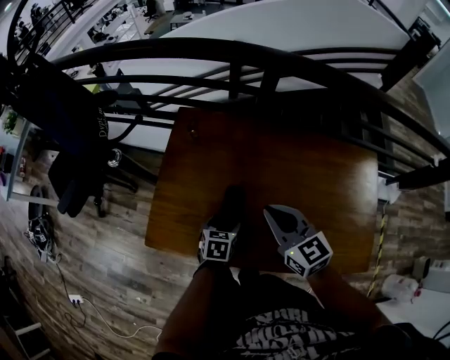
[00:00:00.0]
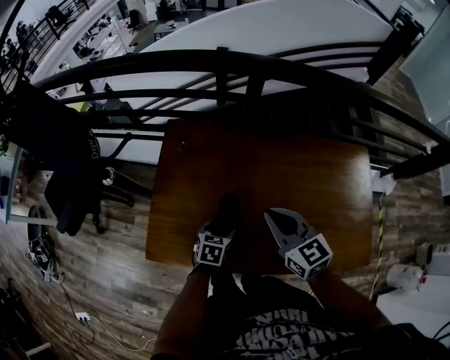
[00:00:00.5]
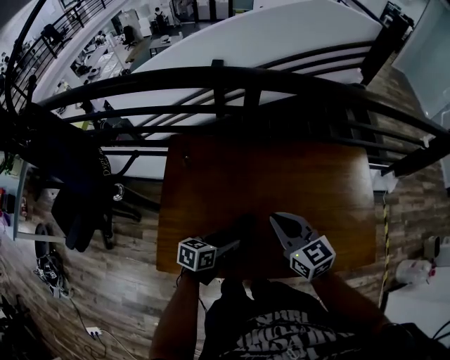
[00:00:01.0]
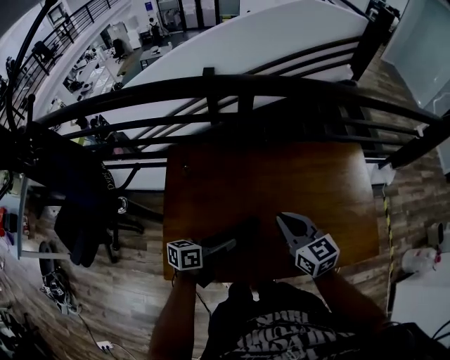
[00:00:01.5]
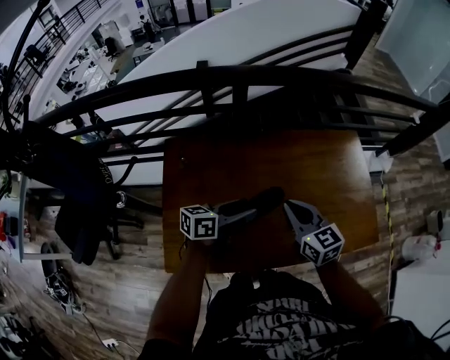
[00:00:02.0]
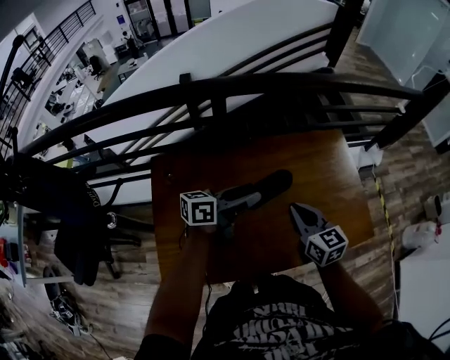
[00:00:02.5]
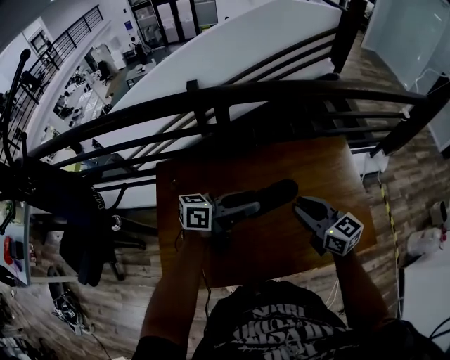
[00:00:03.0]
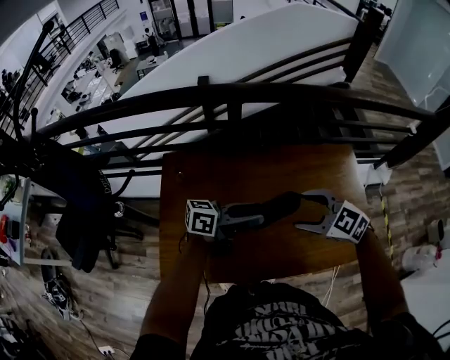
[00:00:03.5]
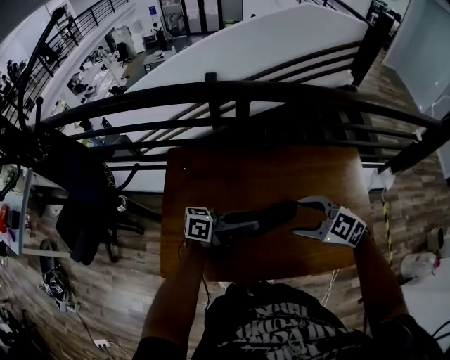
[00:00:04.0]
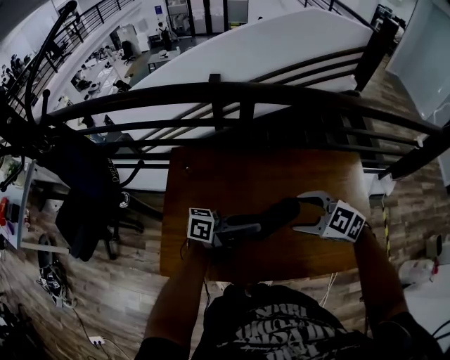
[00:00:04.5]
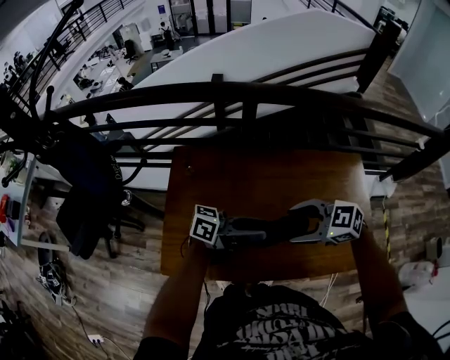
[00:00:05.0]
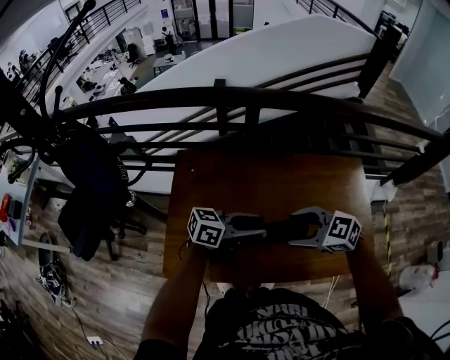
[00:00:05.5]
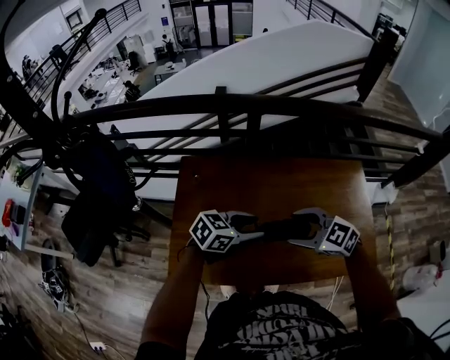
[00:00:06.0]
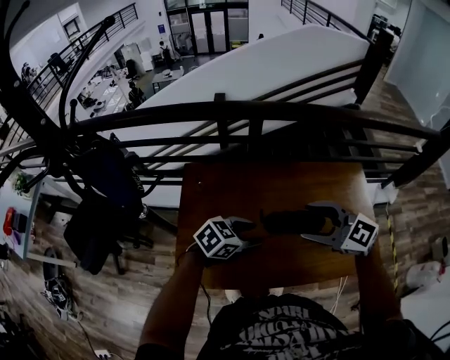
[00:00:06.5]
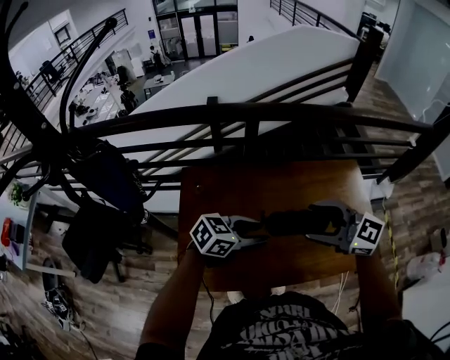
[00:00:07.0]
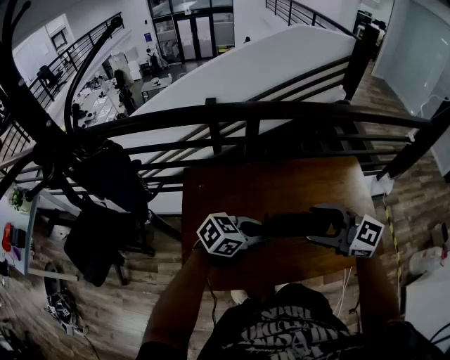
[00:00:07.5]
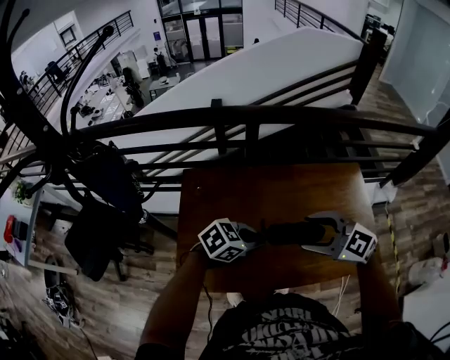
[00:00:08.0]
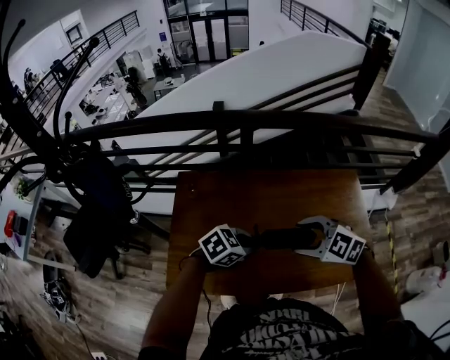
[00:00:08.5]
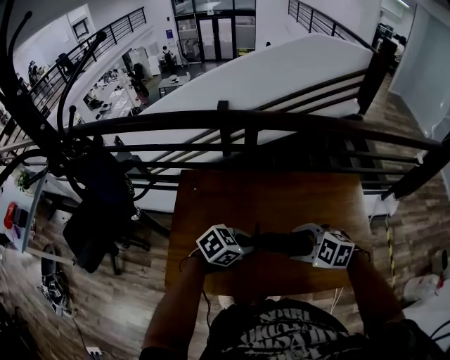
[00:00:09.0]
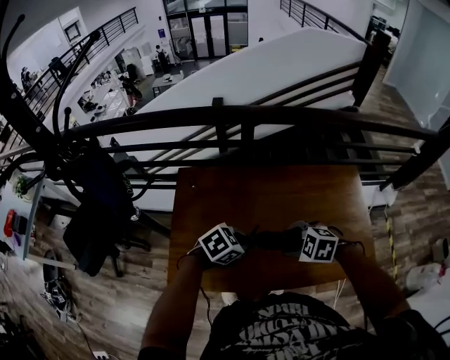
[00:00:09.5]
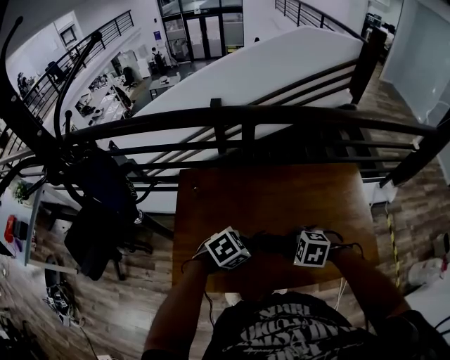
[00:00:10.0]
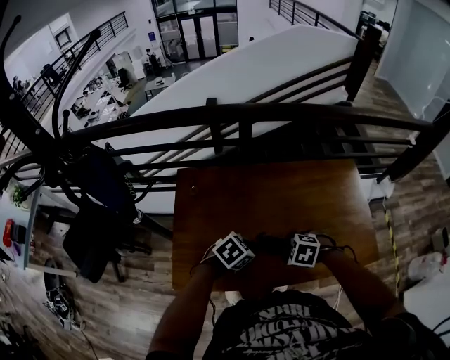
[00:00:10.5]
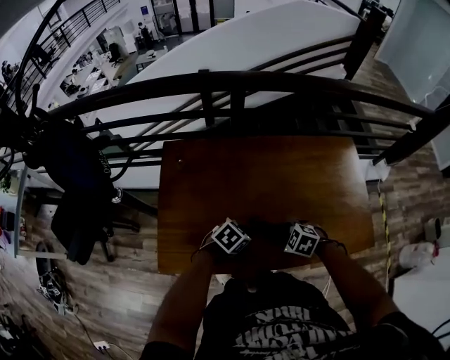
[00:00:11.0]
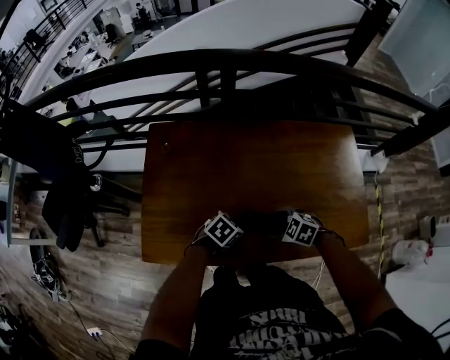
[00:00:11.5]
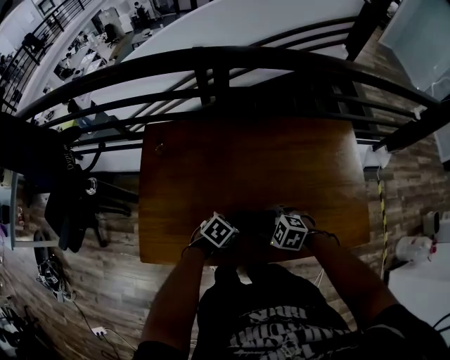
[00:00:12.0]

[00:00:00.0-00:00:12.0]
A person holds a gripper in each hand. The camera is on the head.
00:00:00.0 to 00:00:02.0: The right gripper shifts by some 5 cm, and rotates about 20 degrees; the left gripper goes roughly 20 cm upward, and tilts its fingers some 40 degrees upward.
00:00:02.0 to 00:00:04.0: The right gripper turns by some 50 degrees, and opens its fingers. The left gripper swivels roughly 20 degrees.
00:00:04.0 to 00:00:06.0: The right gripper changes place by roughly 5 cm. Meanwhile the left gripper angles its fingers downward, by roughly 30 degrees.
00:00:06.0 to 00:00:08.0: The left gripper closes up, while the right gripper travels upward by about 5 cm.
00:00:08.0 to 00:00:10.0: The right gripper shifts approximately 15 cm downward, and tips its fingers downward by some 40 degrees.
00:00:10.0 to 00:00:12.0: The two grippers go approximately 15 cm downward.

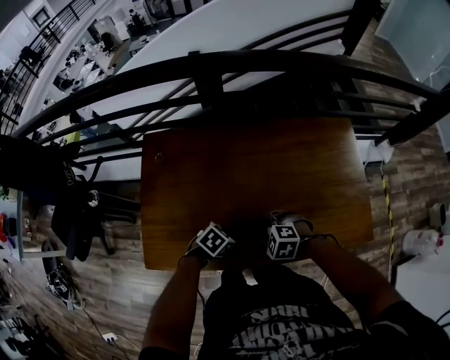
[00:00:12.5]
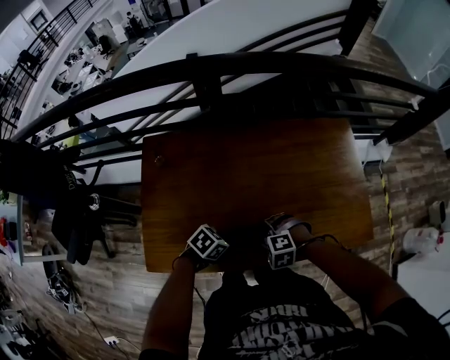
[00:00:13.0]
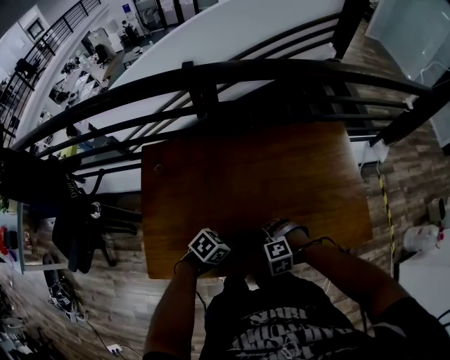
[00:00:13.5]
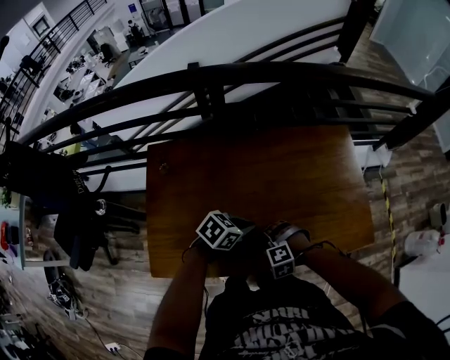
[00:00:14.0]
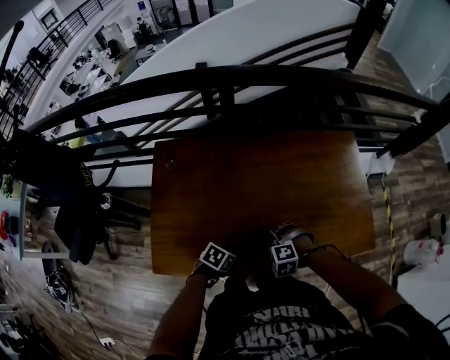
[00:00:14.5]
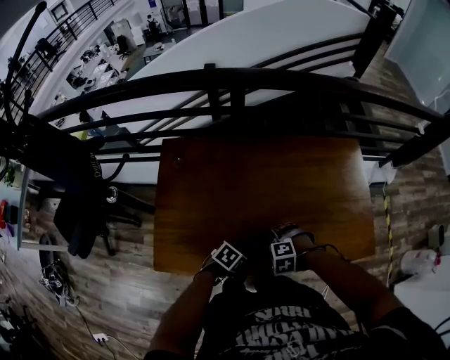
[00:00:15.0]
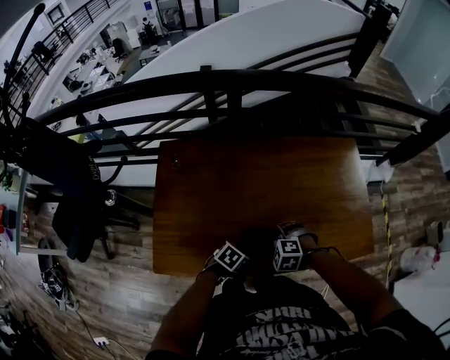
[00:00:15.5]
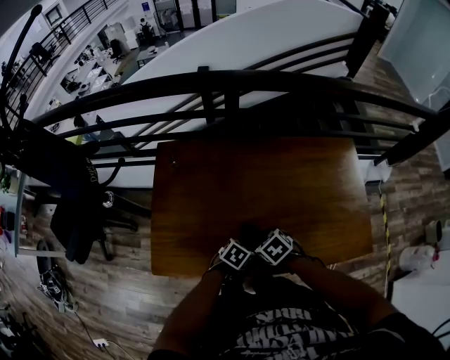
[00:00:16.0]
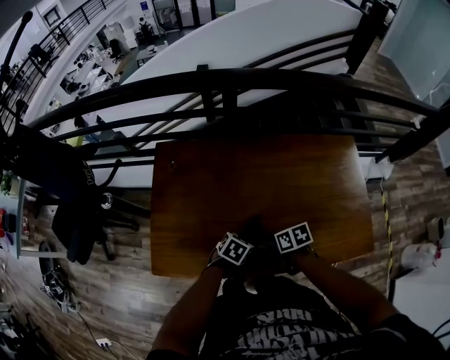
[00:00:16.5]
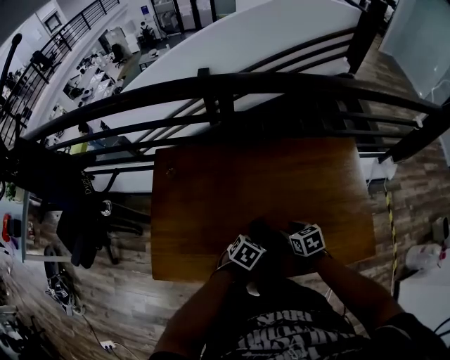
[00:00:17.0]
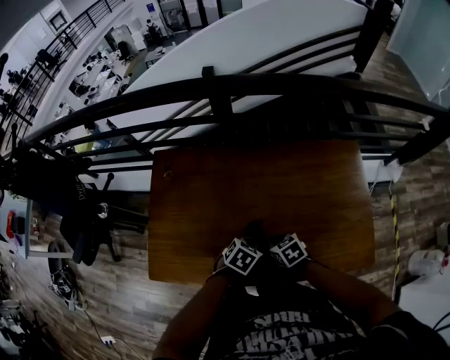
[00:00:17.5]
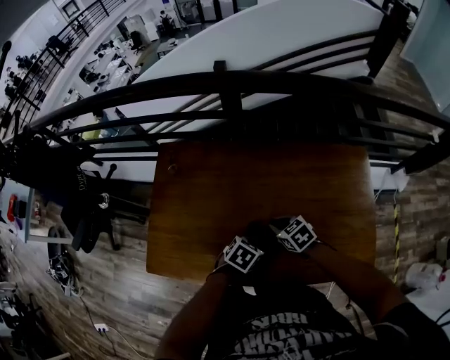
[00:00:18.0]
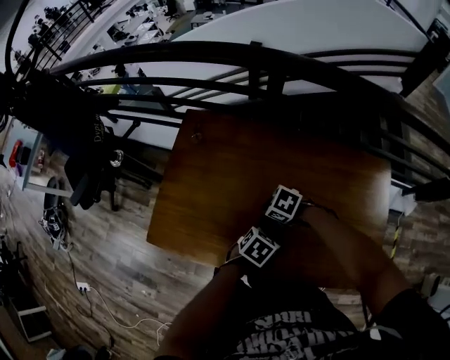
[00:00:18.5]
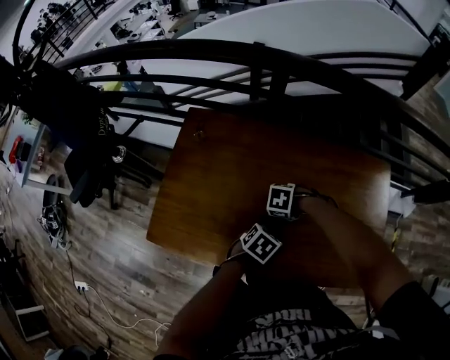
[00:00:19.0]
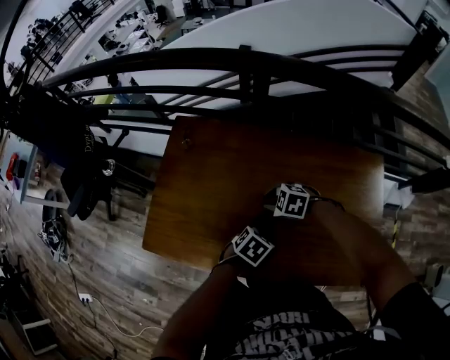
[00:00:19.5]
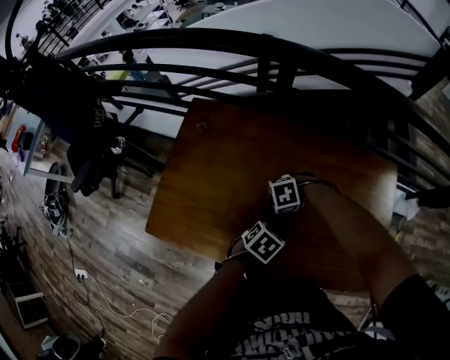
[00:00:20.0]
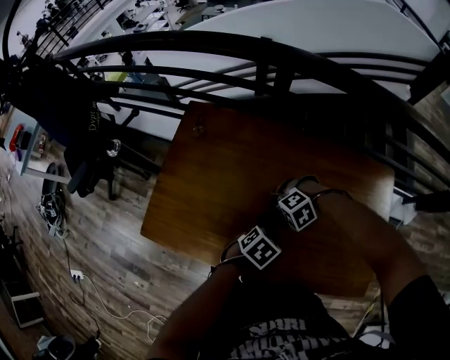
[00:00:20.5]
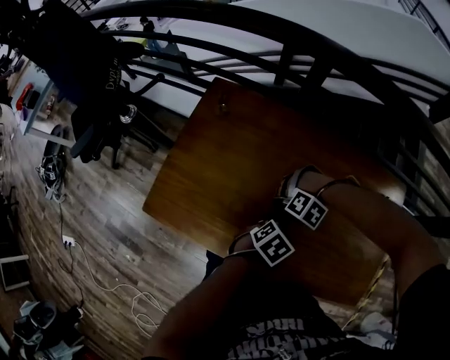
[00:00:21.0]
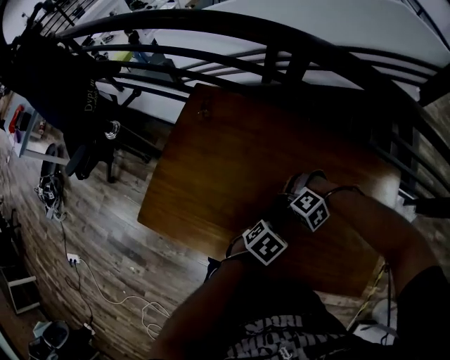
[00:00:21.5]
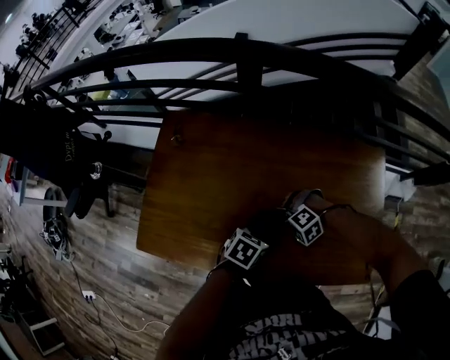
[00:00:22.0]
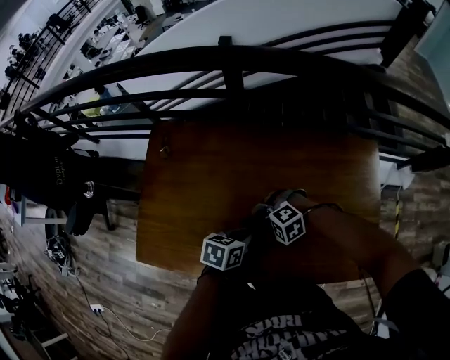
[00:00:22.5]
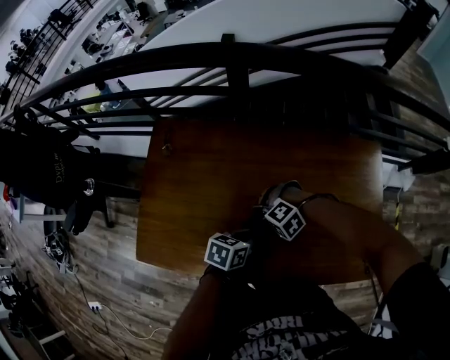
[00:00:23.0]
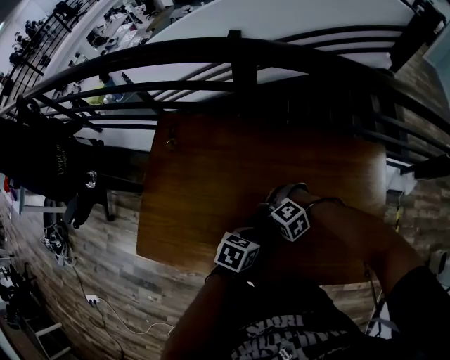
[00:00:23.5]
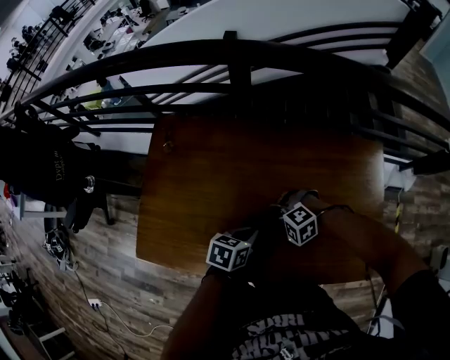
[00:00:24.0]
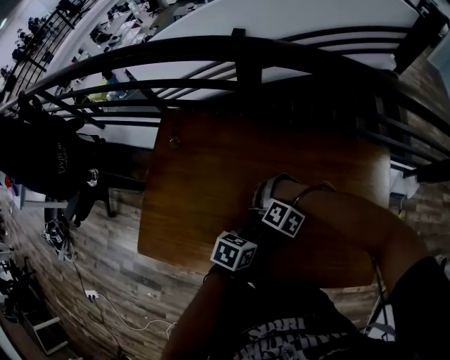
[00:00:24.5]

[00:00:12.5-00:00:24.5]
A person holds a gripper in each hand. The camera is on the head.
00:00:12.5 to 00:00:14.5: The left gripper travels upward and back again, roughly 10 cm each way.
00:00:14.5 to 00:00:16.5: The left gripper ends up some 10 cm from where it was, while the right gripper twists some 90 degrees clockwise, seen from behind.
00:00:16.5 to 00:00:18.5: The right gripper shifts by some 10 cm, rotates around the line of its fingers by some 60 degrees, counterclockwise from behind, and closes its fingers, while the left gripper changes place by some 10 cm.
00:00:18.5 to 00:00:20.5: The right gripper rolls counterclockwise, seen from behind, by roughly 60 degrees.
00:00:20.5 to 00:00:22.5: The left gripper rotates about 30 degrees. The right gripper rotates about 20 degrees.
00:00:22.5 to 00:00:24.5: The right gripper turns by roughly 40 degrees.

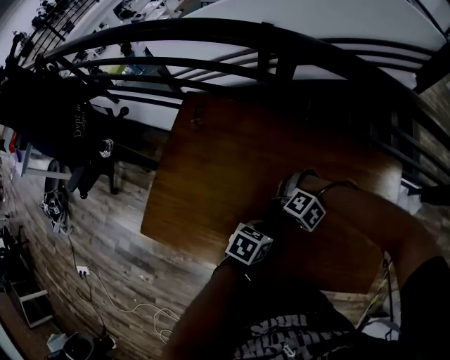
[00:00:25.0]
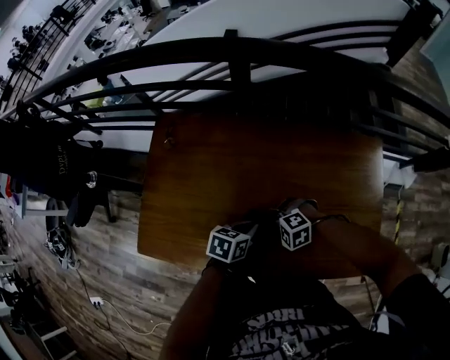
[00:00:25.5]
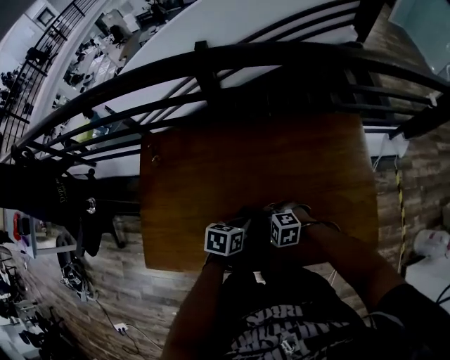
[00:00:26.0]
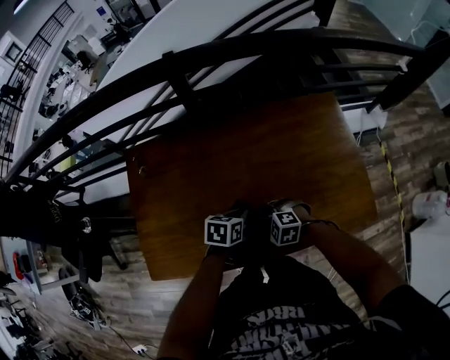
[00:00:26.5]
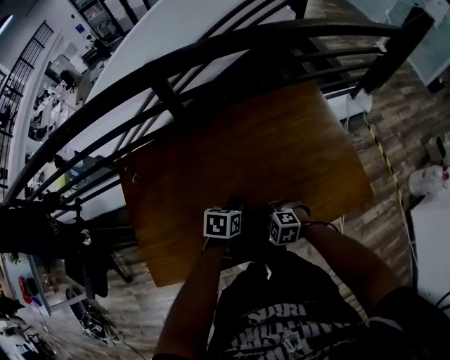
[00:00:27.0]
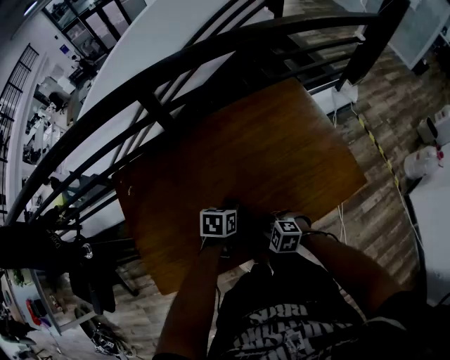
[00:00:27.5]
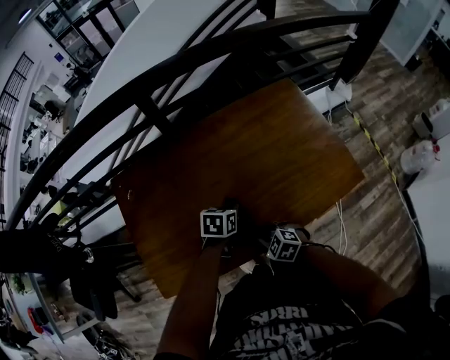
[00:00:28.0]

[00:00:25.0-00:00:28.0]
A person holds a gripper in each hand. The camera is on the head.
00:00:25.0 to 00:00:26.5: The right gripper shifts by approximately 10 cm, and rotates around the line of its fingers by roughly 70 degrees, clockwise from behind.
00:00:26.5 to 00:00:28.0: The right gripper moves approximately 10 cm, and turns by approximately 30 degrees.
